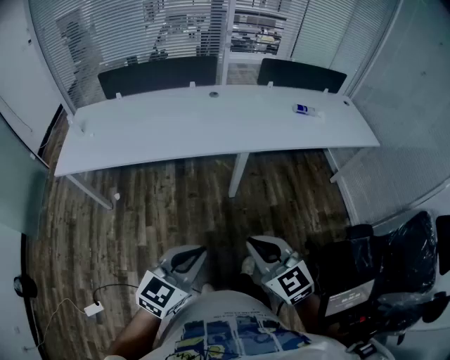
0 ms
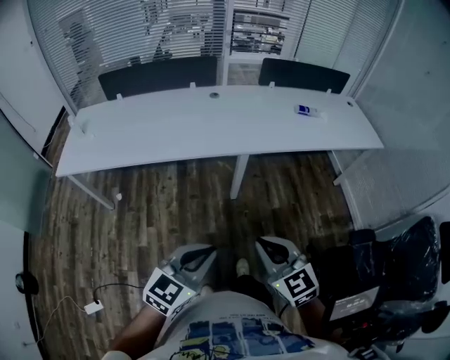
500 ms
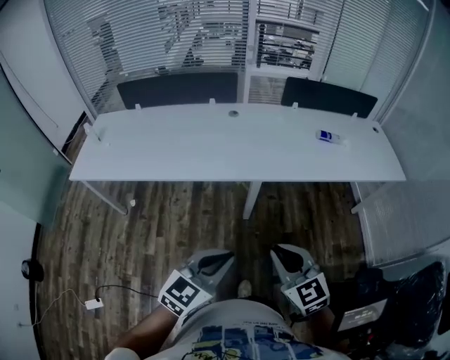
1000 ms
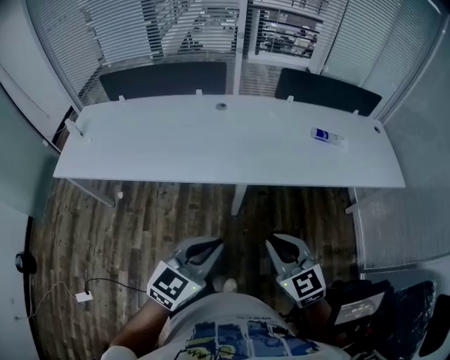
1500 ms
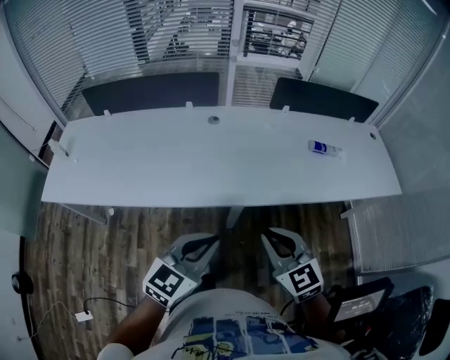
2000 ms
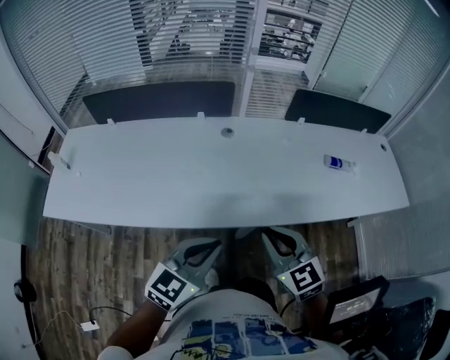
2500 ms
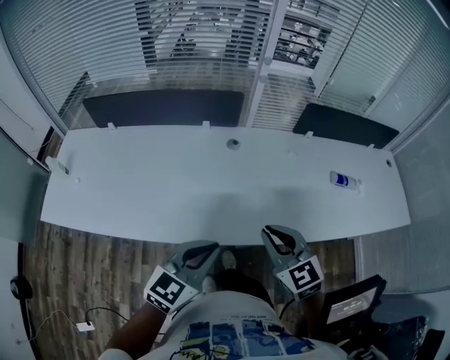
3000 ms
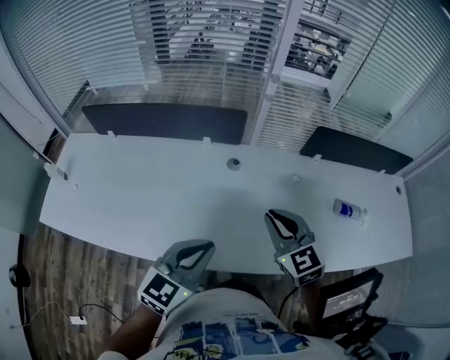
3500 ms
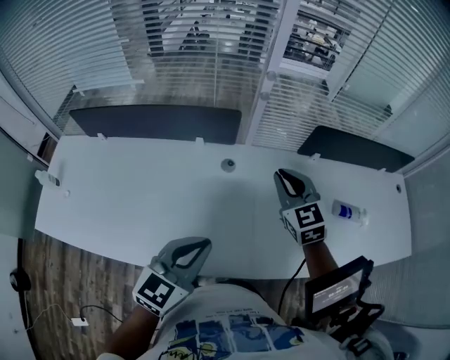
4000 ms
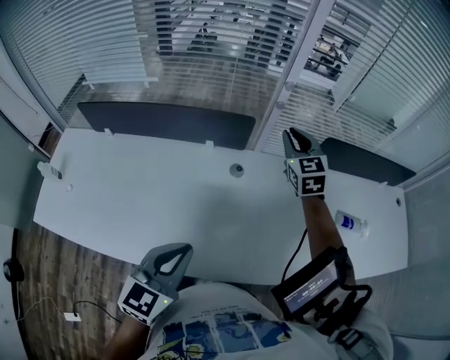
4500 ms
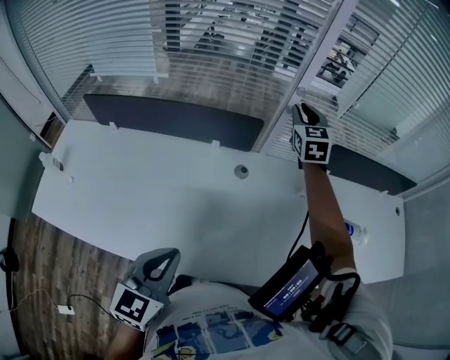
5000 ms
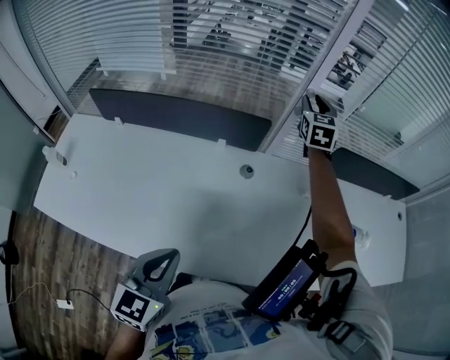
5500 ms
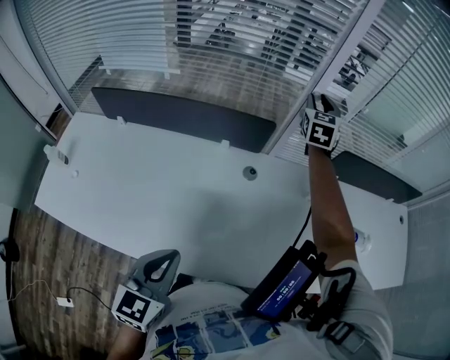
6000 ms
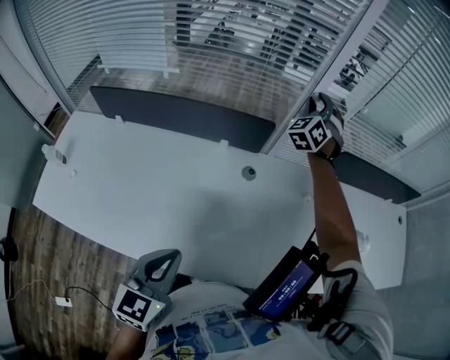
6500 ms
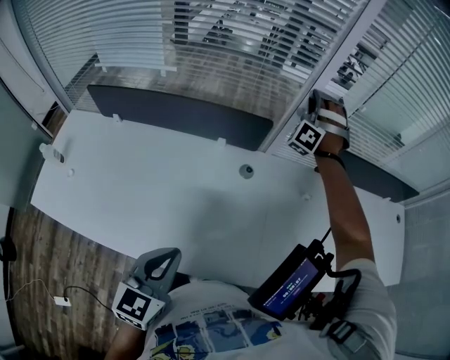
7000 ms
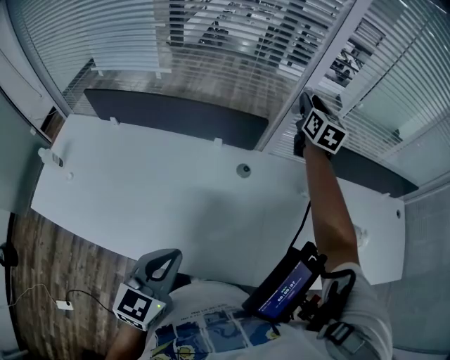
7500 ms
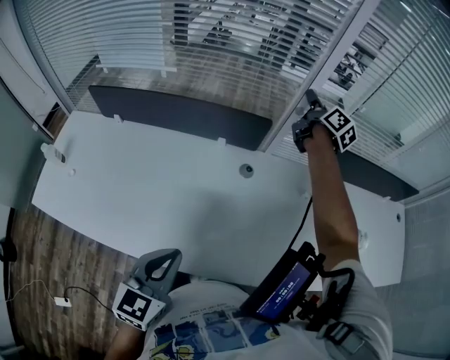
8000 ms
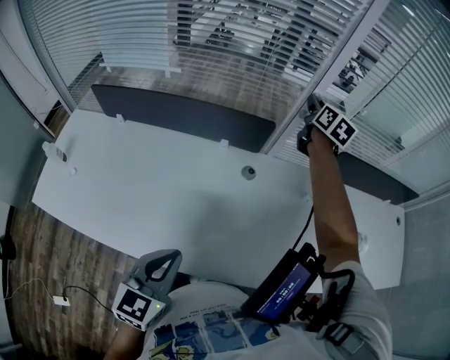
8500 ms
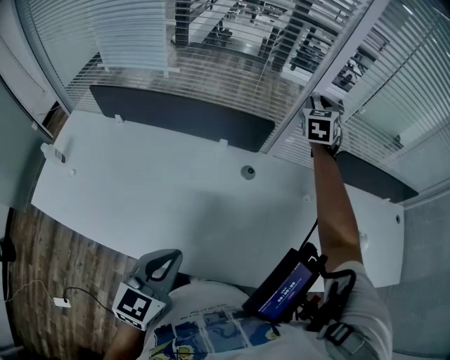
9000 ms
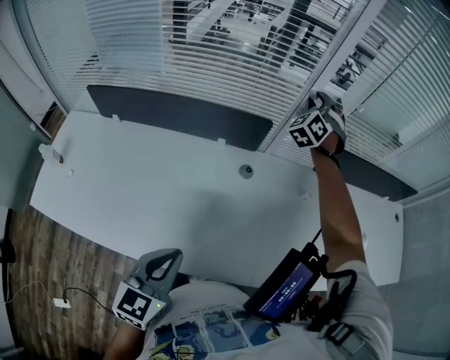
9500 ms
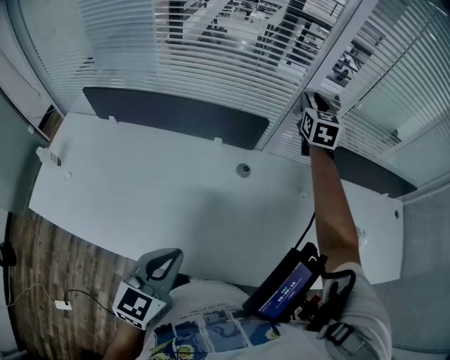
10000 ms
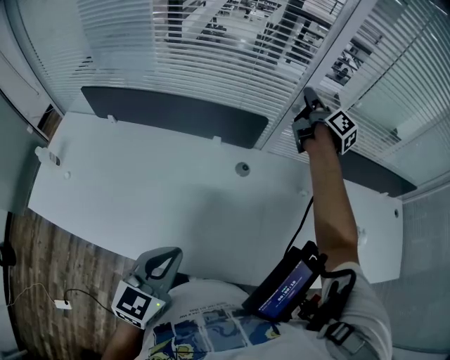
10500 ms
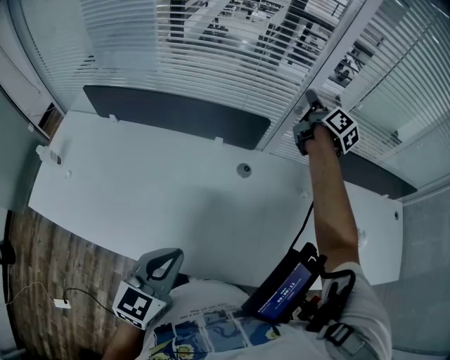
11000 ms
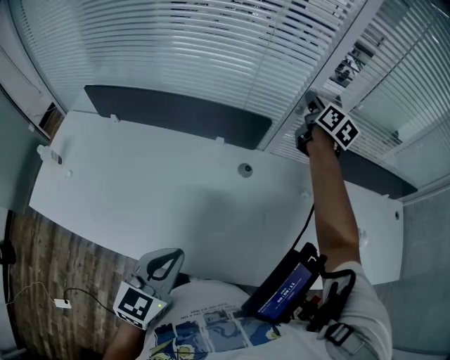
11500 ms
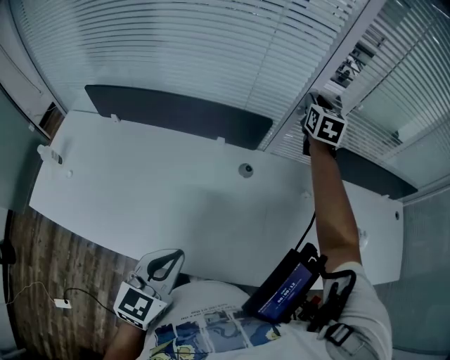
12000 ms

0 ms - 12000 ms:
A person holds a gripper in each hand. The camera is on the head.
0 ms - 2000 ms: Both grippers move forward, some 35 cm.
2000 ms - 4000 ms: The right gripper moves forward, some 50 cm. Meanwhile the left gripper moves forward, roughly 30 cm.
4000 ms - 6000 ms: The right gripper shifts roughly 25 cm forward, swivels about 30 degrees, and opens; the left gripper is displaced to the left by about 10 cm.
6000 ms - 8000 ms: The right gripper rotates around the line of its fingers by roughly 60 degrees, clockwise from behind.
8000 ms - 10000 ms: The right gripper rotates around the line of its fingers by roughly 60 degrees, counterclockwise from behind.

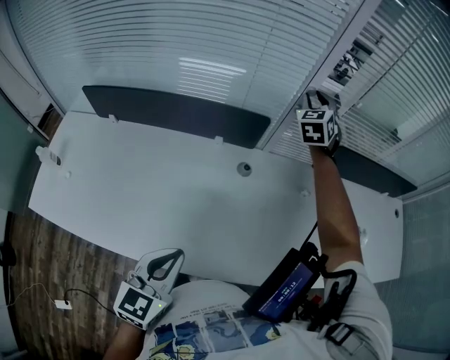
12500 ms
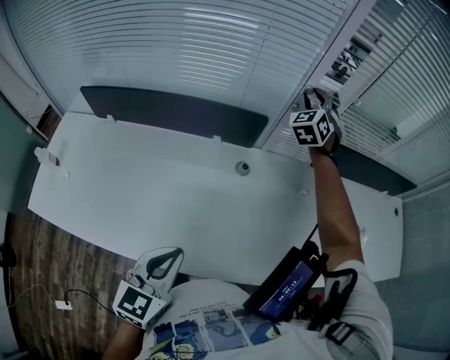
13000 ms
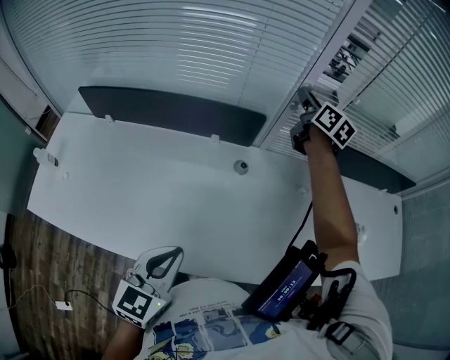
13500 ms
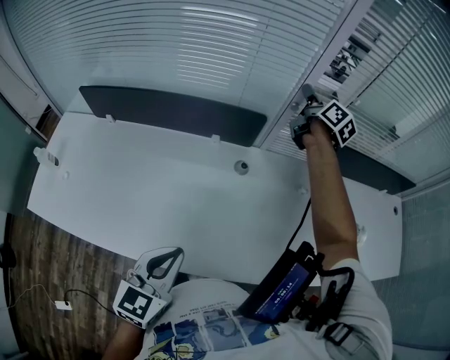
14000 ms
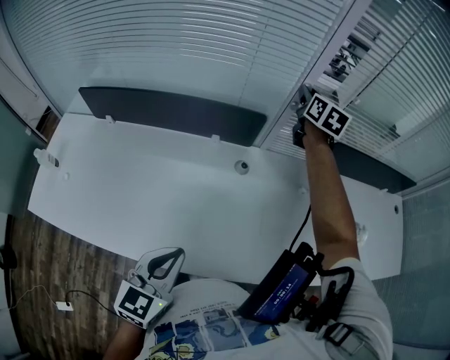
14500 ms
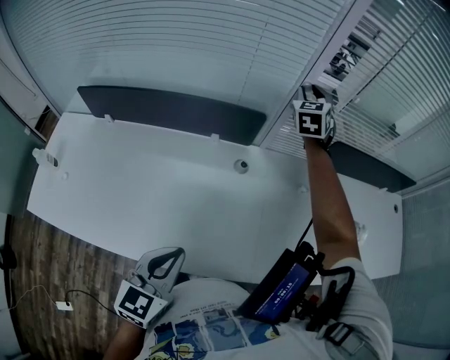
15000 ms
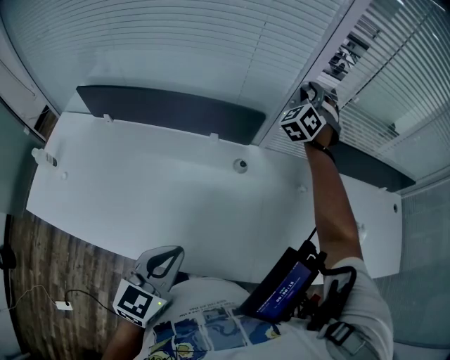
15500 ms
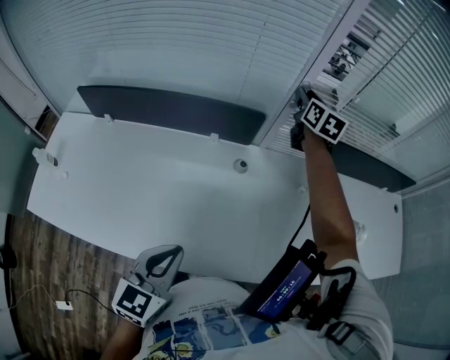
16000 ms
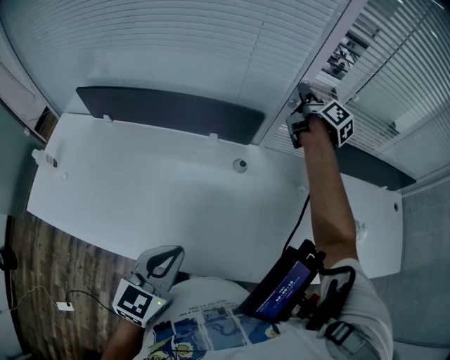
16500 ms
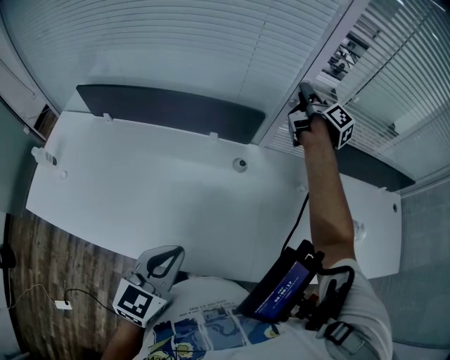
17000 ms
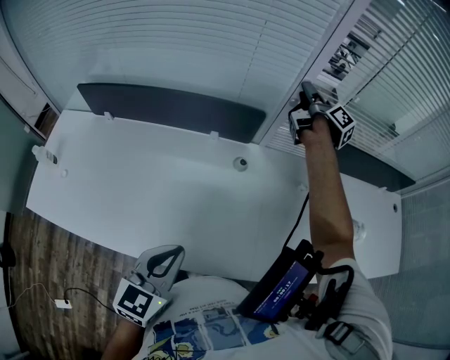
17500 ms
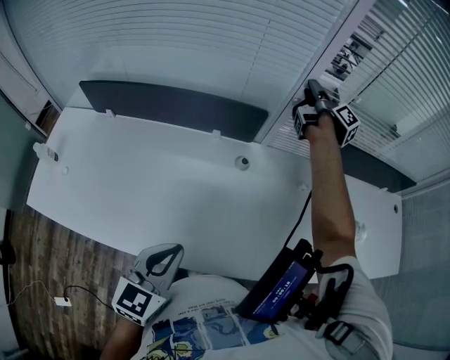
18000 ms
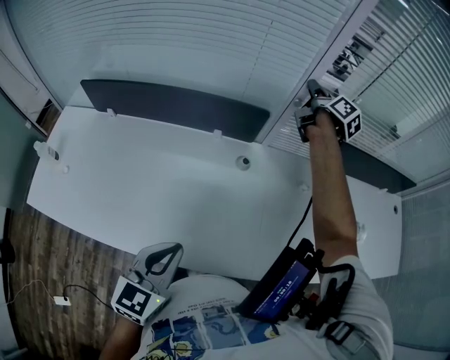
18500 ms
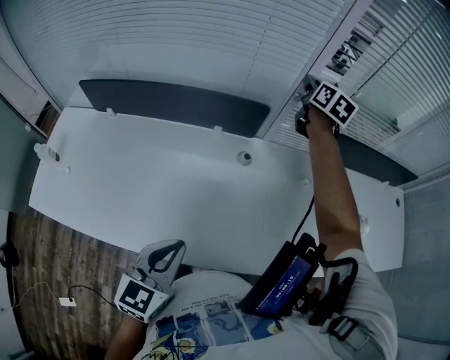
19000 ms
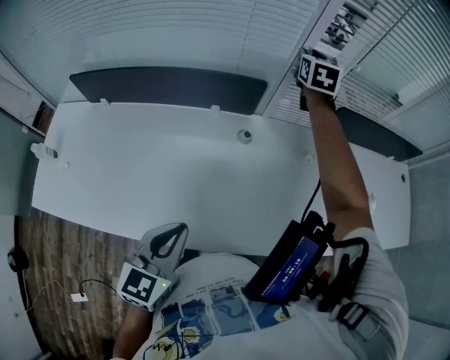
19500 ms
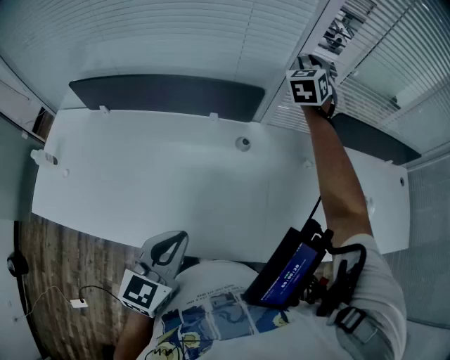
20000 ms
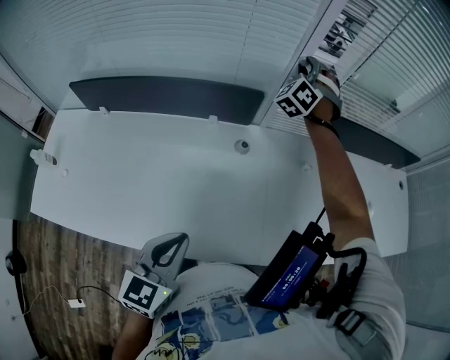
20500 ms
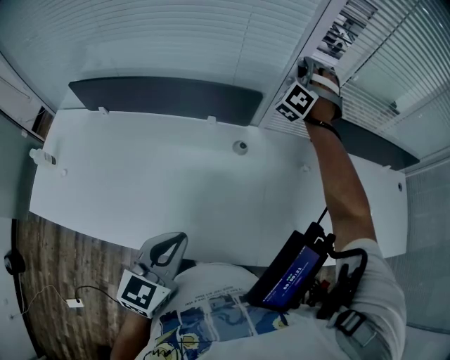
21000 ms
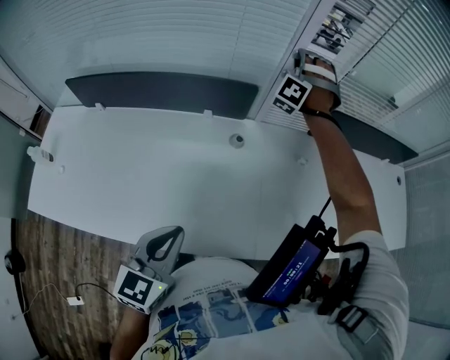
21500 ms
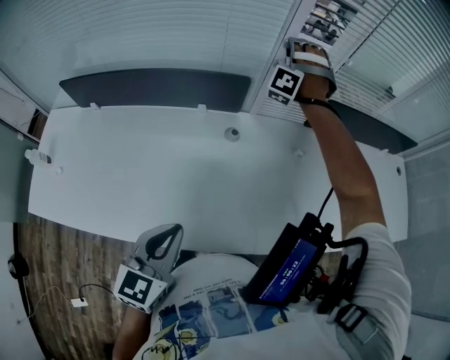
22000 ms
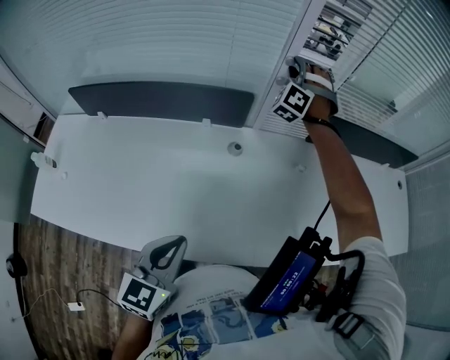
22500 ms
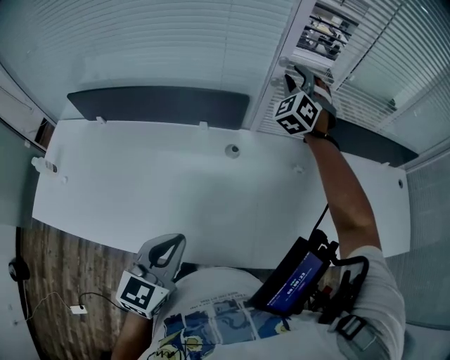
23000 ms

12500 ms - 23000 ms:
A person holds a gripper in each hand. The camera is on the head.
12500 ms - 14500 ms: The right gripper rotates around the line of its fingers by some 50 degrees, clockwise from behind.
14500 ms - 16500 ms: The right gripper rolls clockwise, seen from behind, by some 40 degrees.
16500 ms - 19000 ms: The right gripper swivels some 40 degrees.
19000 ms - 21000 ms: The right gripper rotates around the line of its fingers by about 100 degrees, counterclockwise from behind.
21000 ms - 23000 ms: The right gripper swivels approximately 30 degrees.

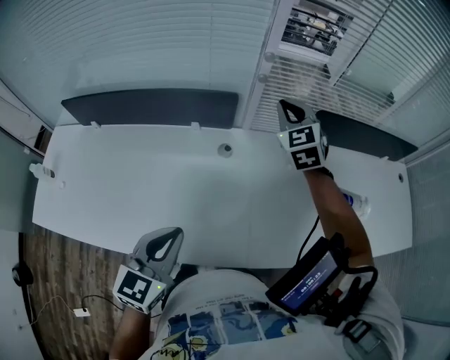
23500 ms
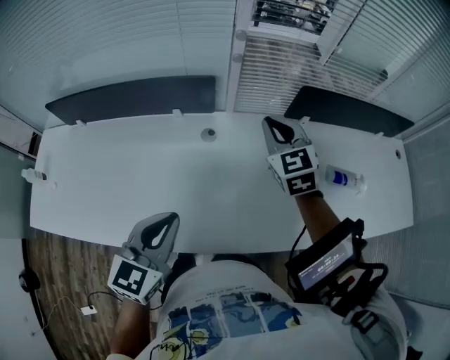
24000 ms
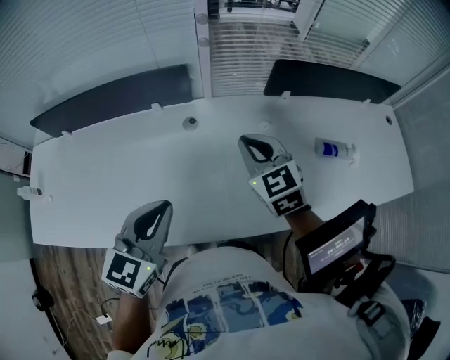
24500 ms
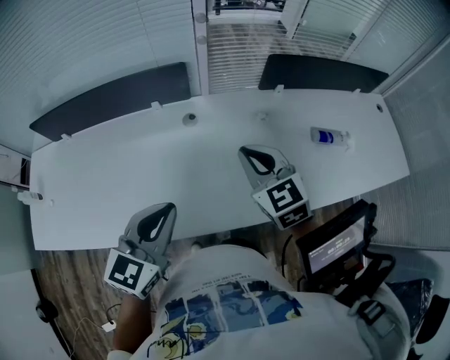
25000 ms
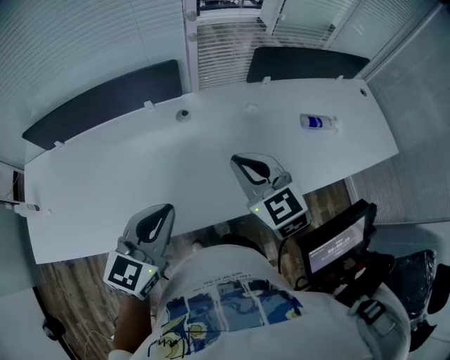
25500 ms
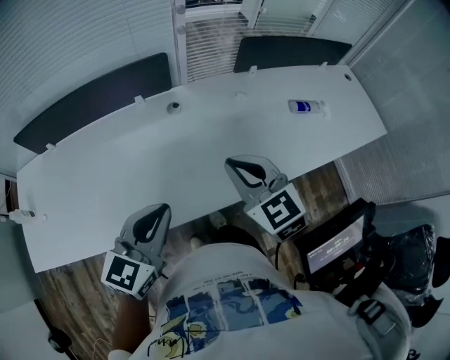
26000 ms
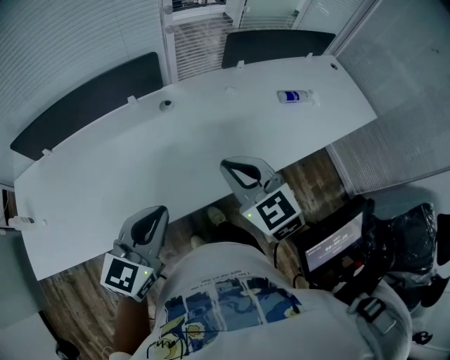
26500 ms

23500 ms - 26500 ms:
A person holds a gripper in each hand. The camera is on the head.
23500 ms - 25000 ms: The right gripper shifts approximately 25 cm backward, and swivels approximately 20 degrees. Meanwhile the left gripper moves to the right, about 5 cm.
25000 ms - 26500 ms: The left gripper is displaced backward and to the left by approximately 10 cm, while the right gripper heads backward, covering some 15 cm.

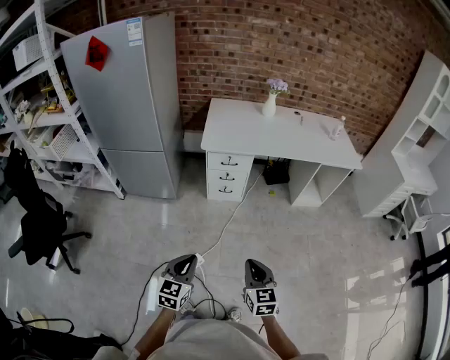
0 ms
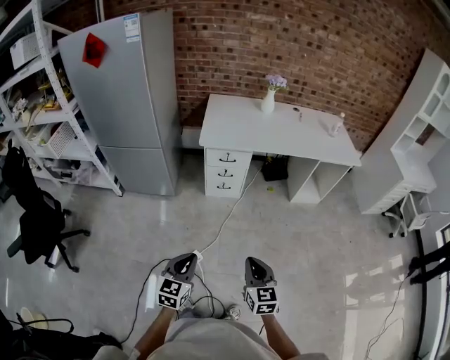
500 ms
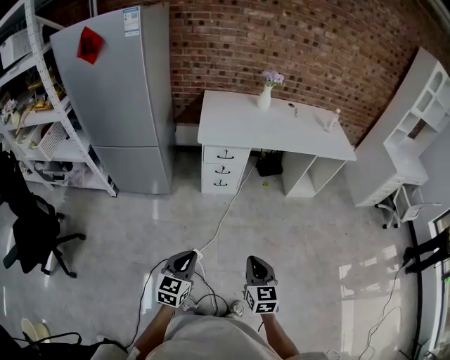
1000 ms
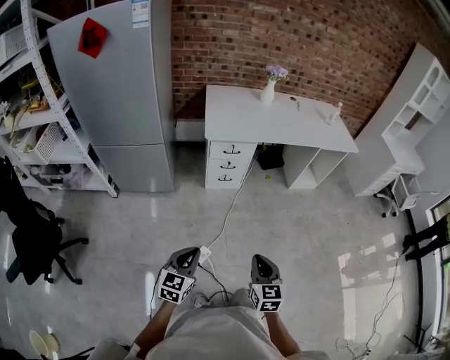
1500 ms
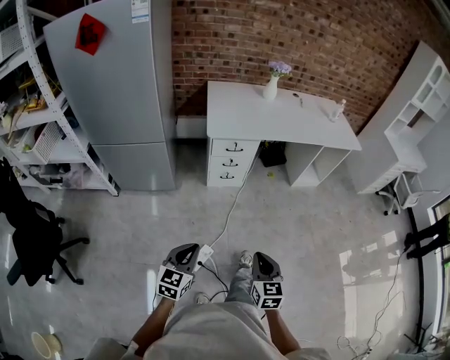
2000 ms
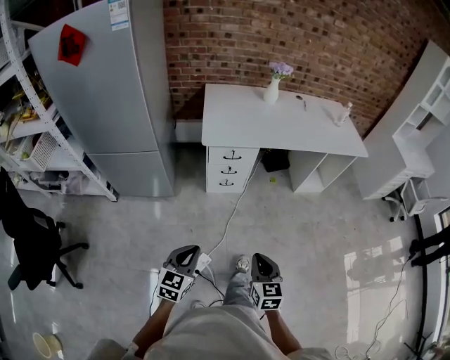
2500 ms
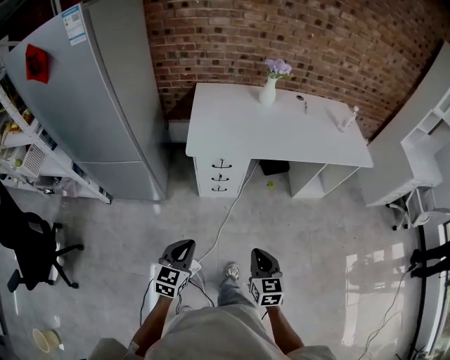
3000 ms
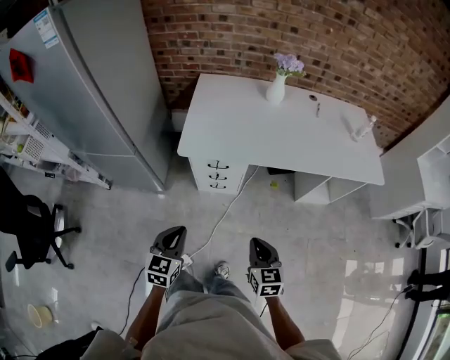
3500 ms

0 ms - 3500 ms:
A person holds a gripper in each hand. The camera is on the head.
0 ms - 2000 ms: The grippers both shift to the left by about 10 cm.
2000 ms - 3500 ms: The grippers both shift forward and to the right by roughly 35 cm.
